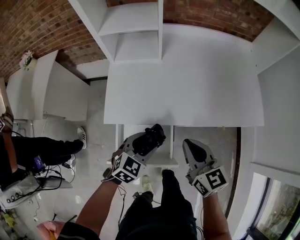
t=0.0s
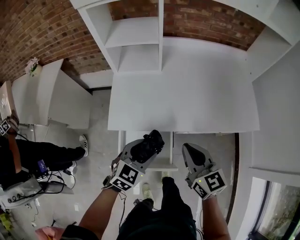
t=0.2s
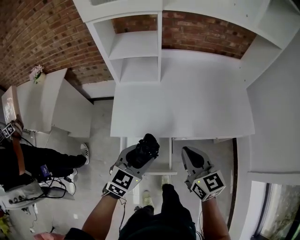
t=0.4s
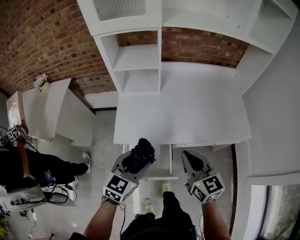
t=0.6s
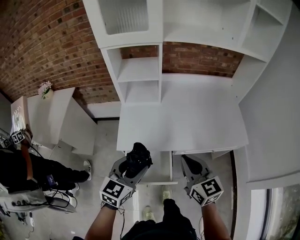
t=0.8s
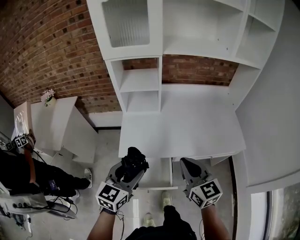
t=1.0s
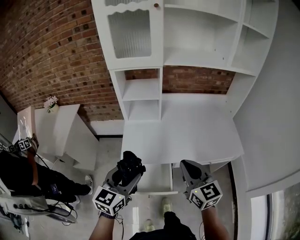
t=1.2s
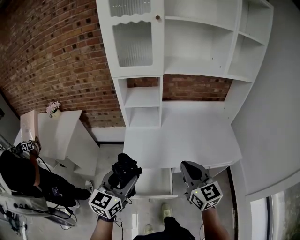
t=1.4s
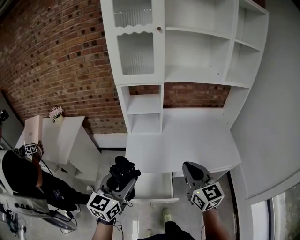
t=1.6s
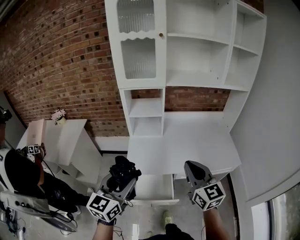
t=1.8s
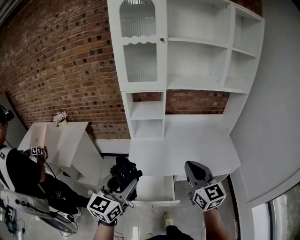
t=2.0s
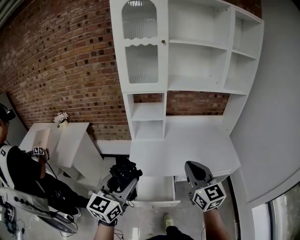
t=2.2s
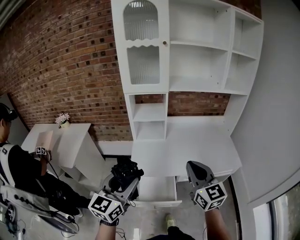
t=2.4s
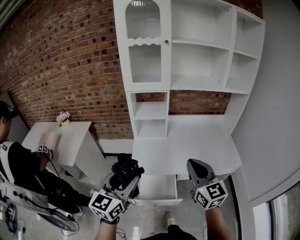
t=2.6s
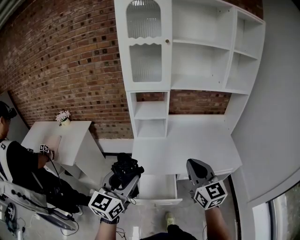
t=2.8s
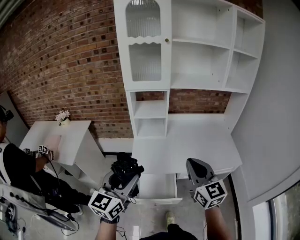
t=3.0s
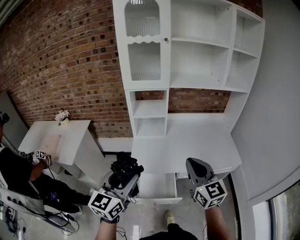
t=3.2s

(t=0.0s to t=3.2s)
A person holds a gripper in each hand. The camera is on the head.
t=0.0s - t=1.6s: The grippers both shift upward by some 30 cm. The left gripper tilts its fingers some 30 degrees upward.
t=1.6s - t=3.2s: The two grippers go roughly 5 cm upward.

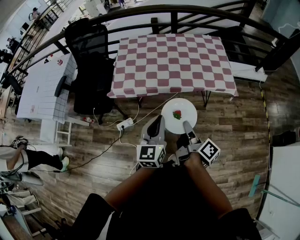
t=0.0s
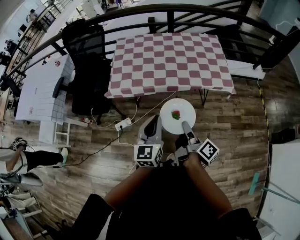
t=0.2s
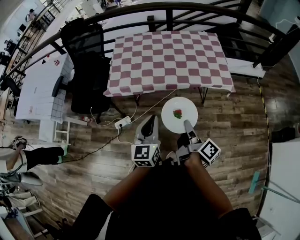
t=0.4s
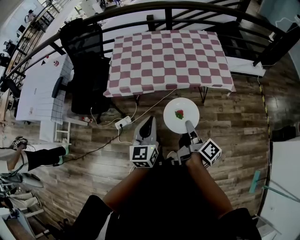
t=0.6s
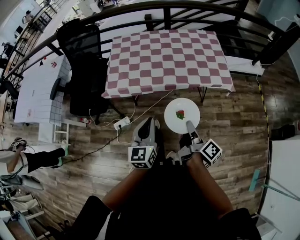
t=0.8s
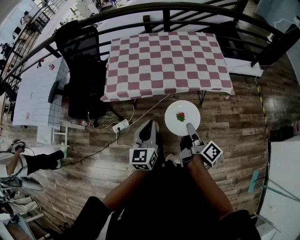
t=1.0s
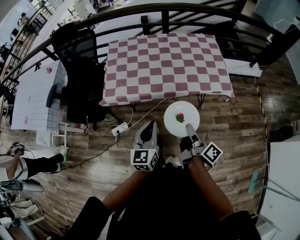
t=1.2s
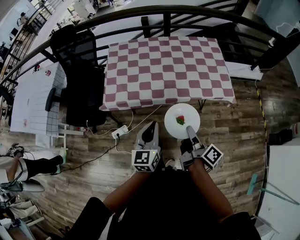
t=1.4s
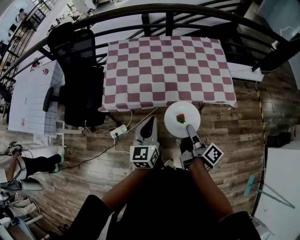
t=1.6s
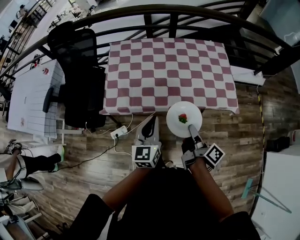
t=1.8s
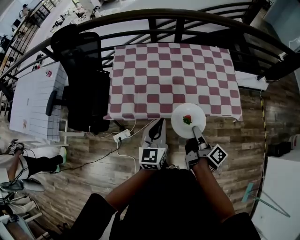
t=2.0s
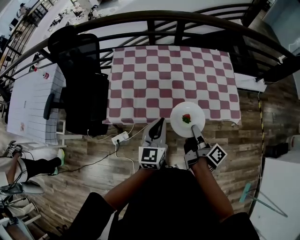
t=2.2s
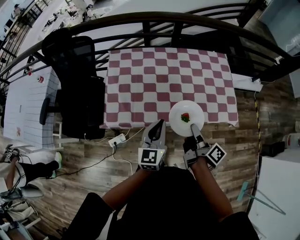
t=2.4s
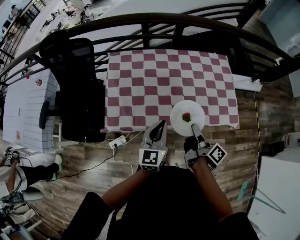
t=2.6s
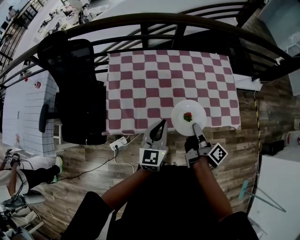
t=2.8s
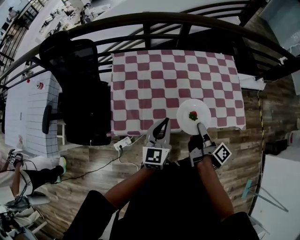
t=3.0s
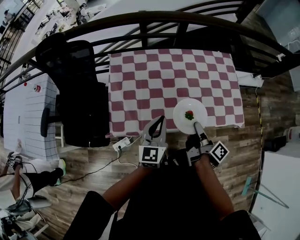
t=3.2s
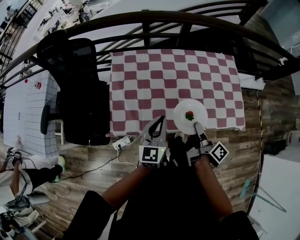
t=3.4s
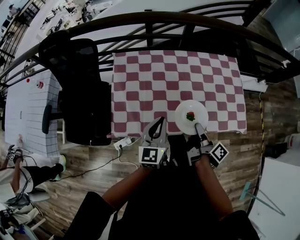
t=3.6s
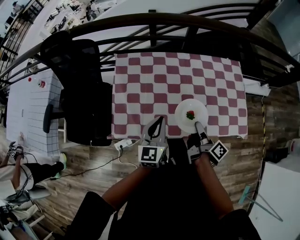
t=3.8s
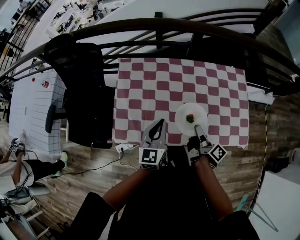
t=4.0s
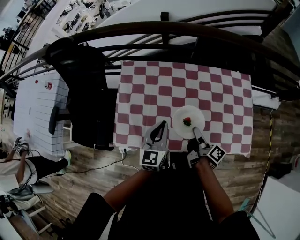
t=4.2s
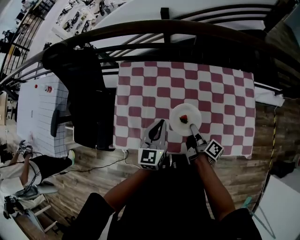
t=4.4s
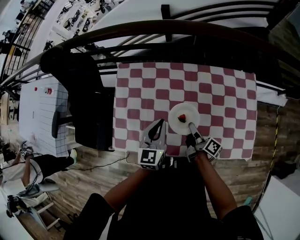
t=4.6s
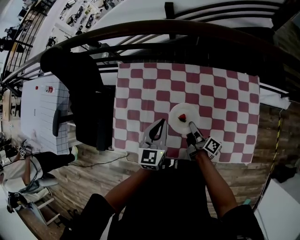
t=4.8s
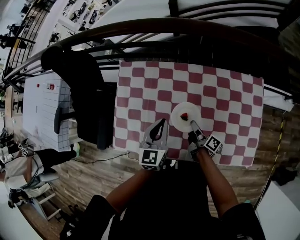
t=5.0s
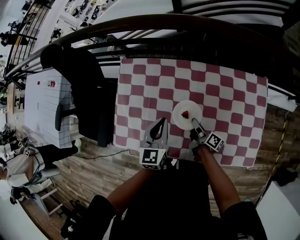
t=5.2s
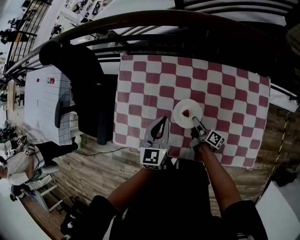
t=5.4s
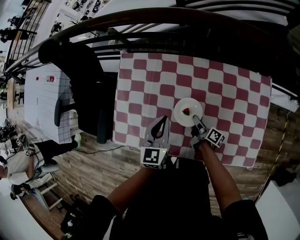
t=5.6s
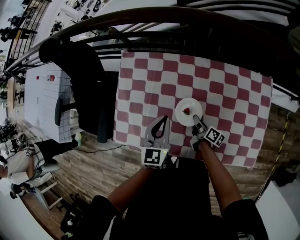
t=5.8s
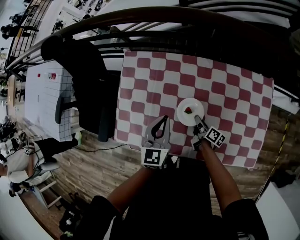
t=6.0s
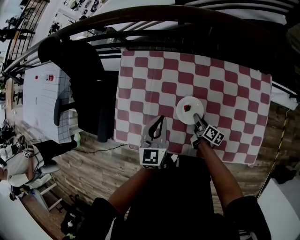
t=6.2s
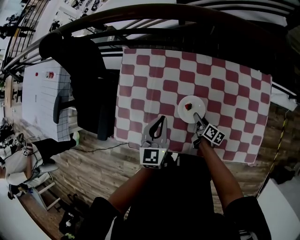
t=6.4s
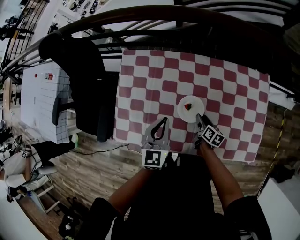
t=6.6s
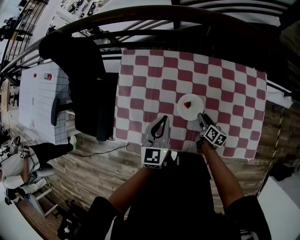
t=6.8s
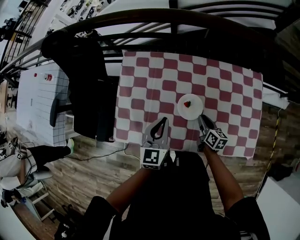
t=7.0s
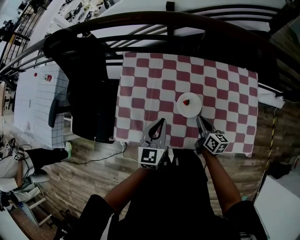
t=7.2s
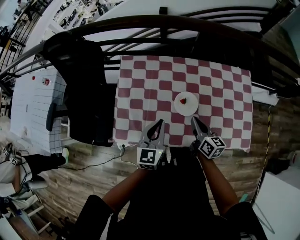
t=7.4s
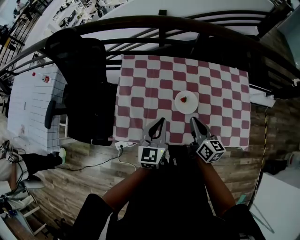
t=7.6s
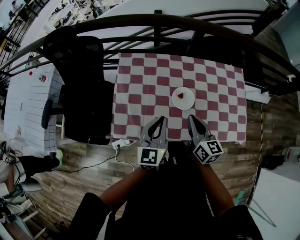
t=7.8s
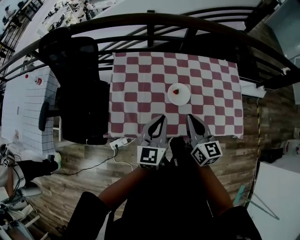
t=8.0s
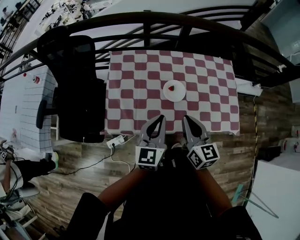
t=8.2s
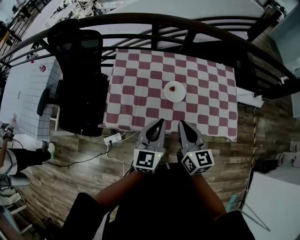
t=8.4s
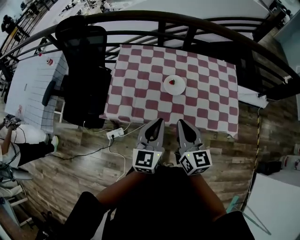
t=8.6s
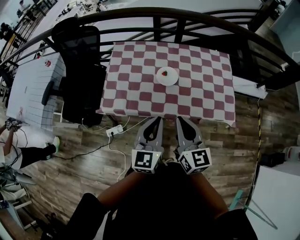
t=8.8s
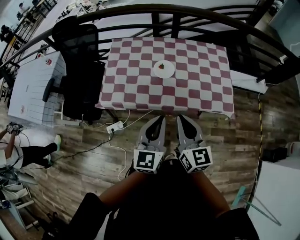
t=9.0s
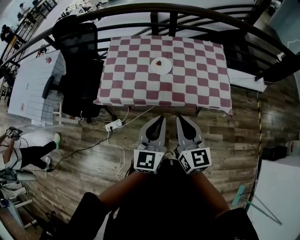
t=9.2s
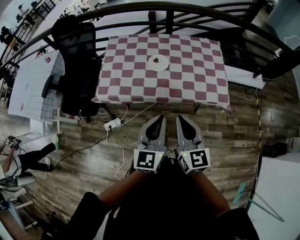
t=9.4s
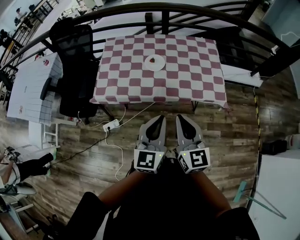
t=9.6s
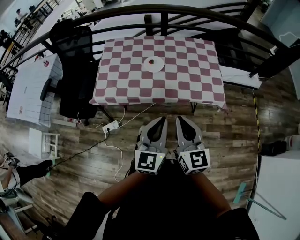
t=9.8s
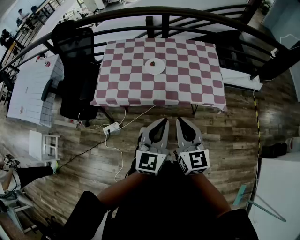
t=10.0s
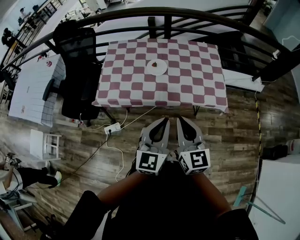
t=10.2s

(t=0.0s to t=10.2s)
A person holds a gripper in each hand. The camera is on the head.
t=0.0s - t=1.4s: The two grippers go roughly 10 cm forward.
t=1.4s - t=3.0s: The grippers both shift forward by approximately 25 cm.
t=3.0s - t=4.4s: The left gripper travels forward by roughly 15 cm. Meanwhile the right gripper goes roughly 20 cm forward and downward, and rotates some 20 degrees.
t=4.4s - t=5.8s: The left gripper heads forward, covering roughly 5 cm. Meanwhile the right gripper is displaced downward and forward by about 15 cm.
t=5.8s - t=7.2s: The right gripper is displaced upward and backward by some 15 cm, changes its angle by approximately 40 degrees, and opens, then closes again. The left gripper heads backward and to the left, covering some 10 cm.
t=7.2s - t=8.8s: The grippers both shift backward and upward by some 30 cm. The right gripper changes its angle by some 30 degrees.
t=8.8s - t=10.2s: The grippers both shift backward and to the right by about 15 cm.

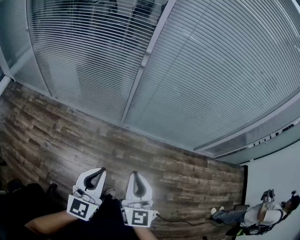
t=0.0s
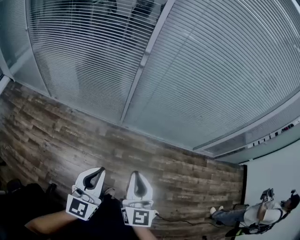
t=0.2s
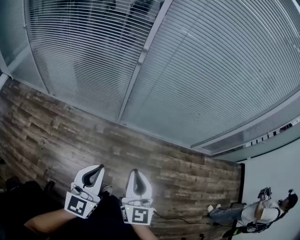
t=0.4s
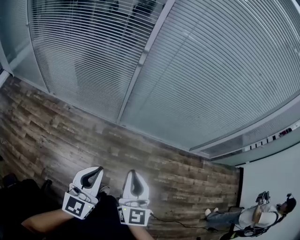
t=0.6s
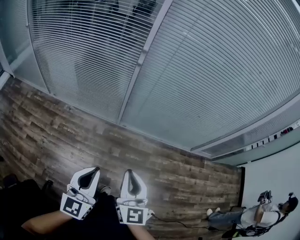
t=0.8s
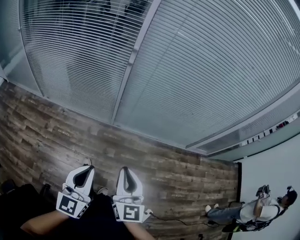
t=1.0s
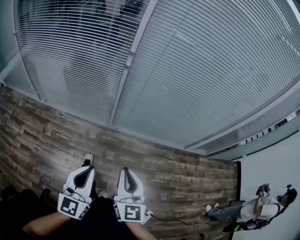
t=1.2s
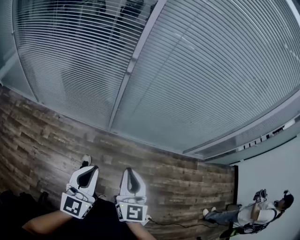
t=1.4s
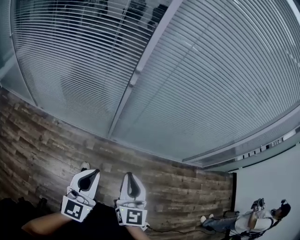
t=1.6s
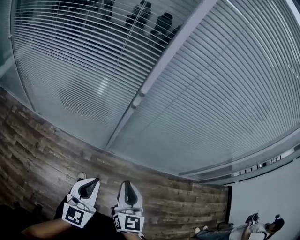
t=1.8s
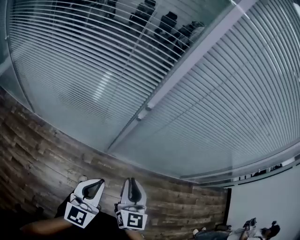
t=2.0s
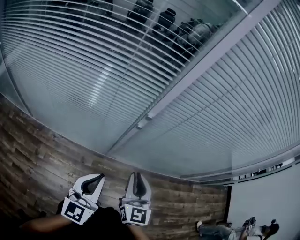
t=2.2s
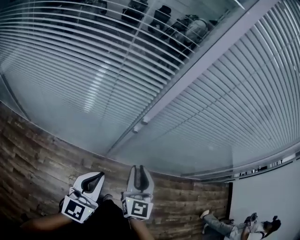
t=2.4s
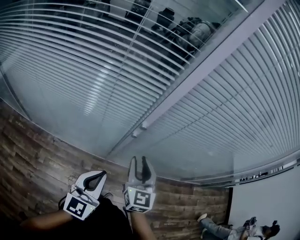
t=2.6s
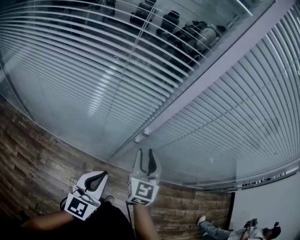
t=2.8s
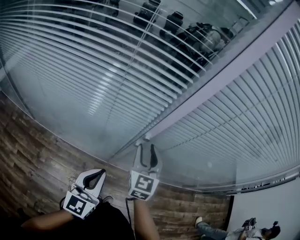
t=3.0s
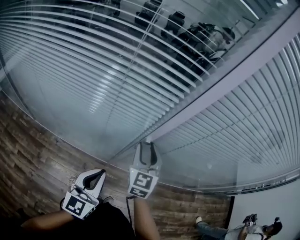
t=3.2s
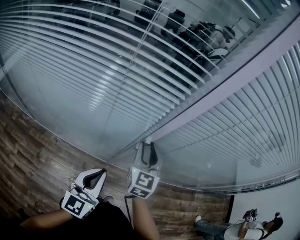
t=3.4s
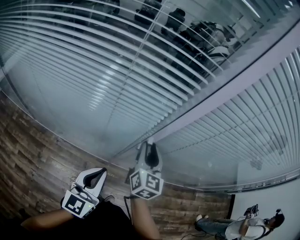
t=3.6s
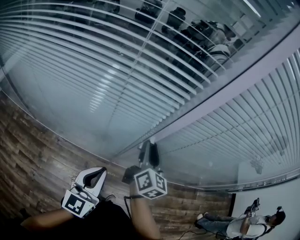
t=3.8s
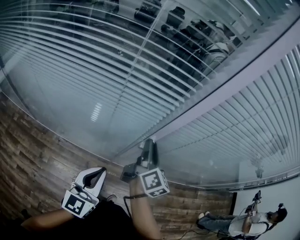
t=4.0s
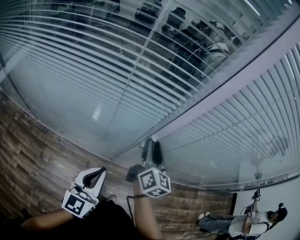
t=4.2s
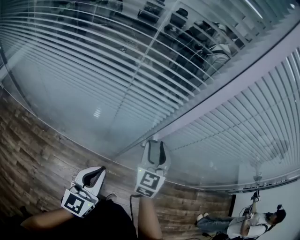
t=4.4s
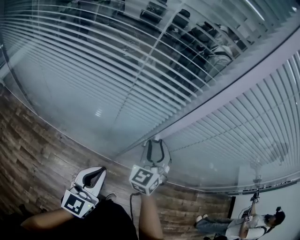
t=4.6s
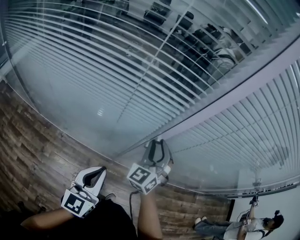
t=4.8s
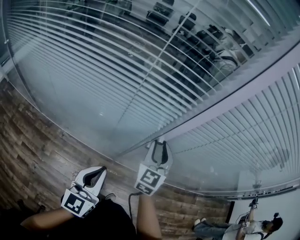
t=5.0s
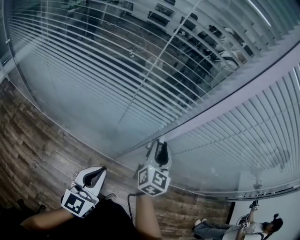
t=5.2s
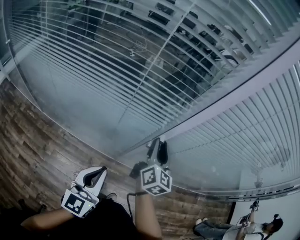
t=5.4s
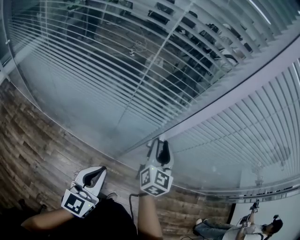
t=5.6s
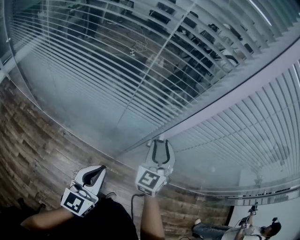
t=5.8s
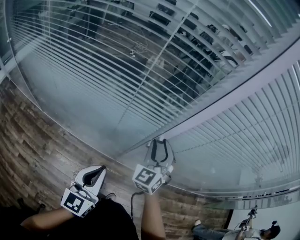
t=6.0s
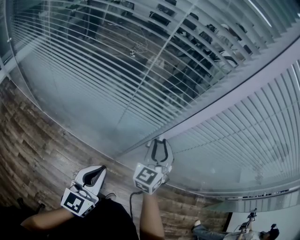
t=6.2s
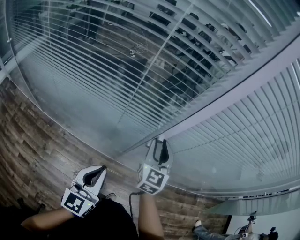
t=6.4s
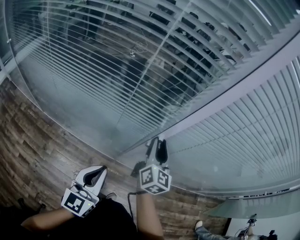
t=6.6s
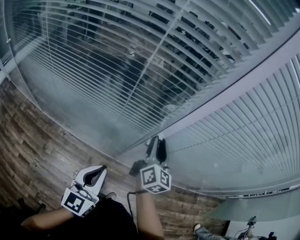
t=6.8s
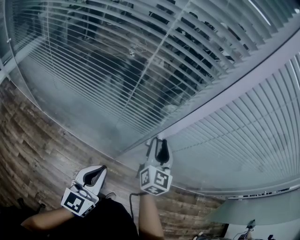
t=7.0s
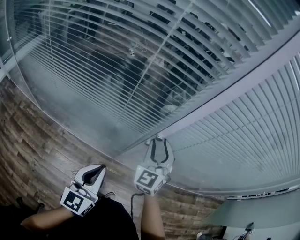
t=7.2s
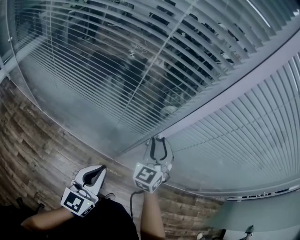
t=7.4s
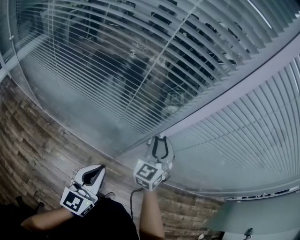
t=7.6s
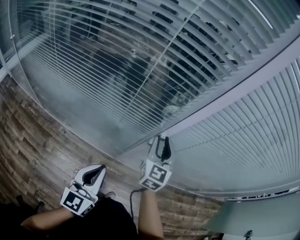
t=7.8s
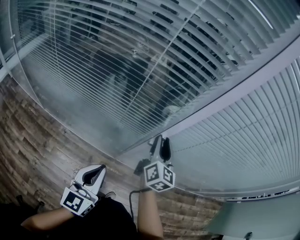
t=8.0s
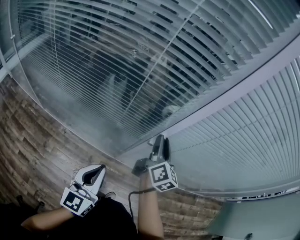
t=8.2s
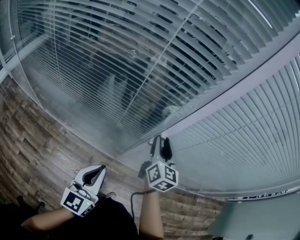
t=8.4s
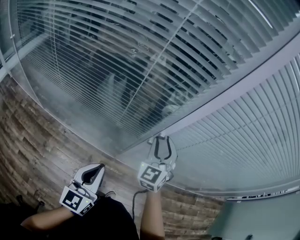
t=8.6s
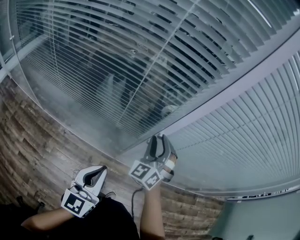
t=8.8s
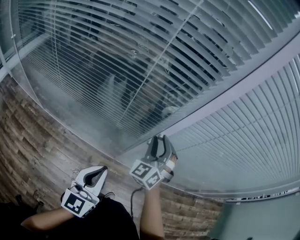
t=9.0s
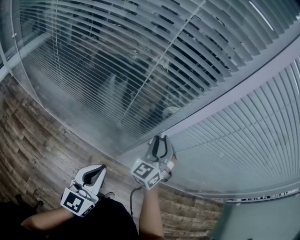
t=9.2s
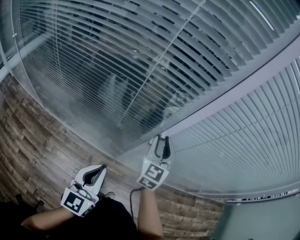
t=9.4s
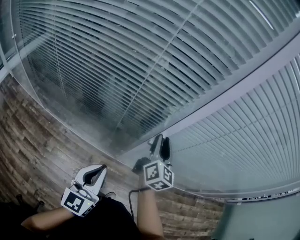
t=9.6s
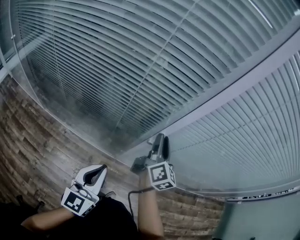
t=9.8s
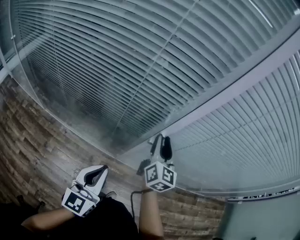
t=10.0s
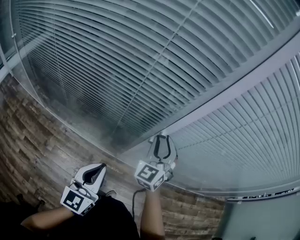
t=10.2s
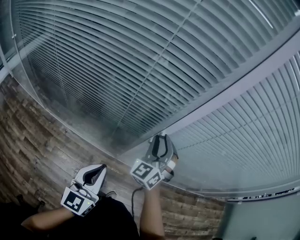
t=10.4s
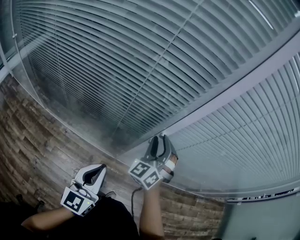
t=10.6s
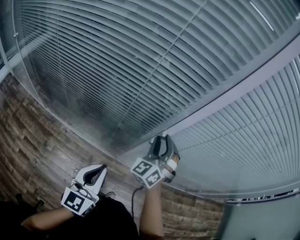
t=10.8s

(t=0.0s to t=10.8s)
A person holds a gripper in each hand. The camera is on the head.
t=0.0s - t=1.6s: The grippers both shift forward by approximately 15 cm.
t=1.6s - t=3.0s: The right gripper heads forward, covering about 40 cm, and opens, while the left gripper shifts about 30 cm forward and to the left.
t=3.0s - t=4.6s: The right gripper swivels about 30 degrees.
t=6.2s - t=7.8s: The right gripper swivels some 20 degrees.
t=7.8s - t=9.2s: The right gripper rotates some 40 degrees.
